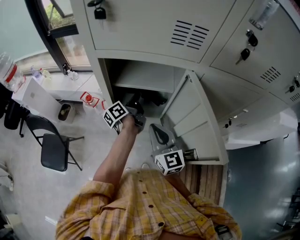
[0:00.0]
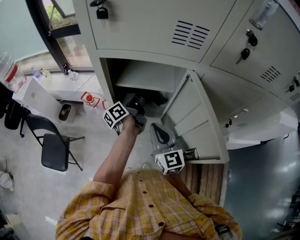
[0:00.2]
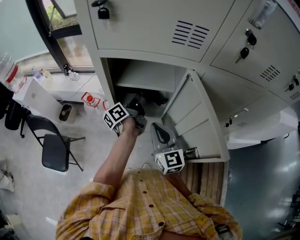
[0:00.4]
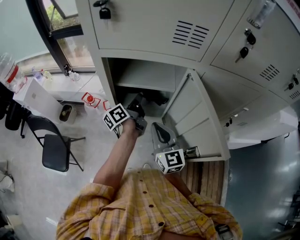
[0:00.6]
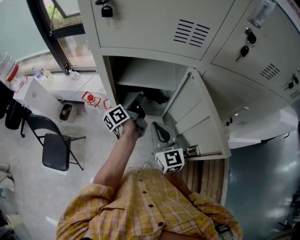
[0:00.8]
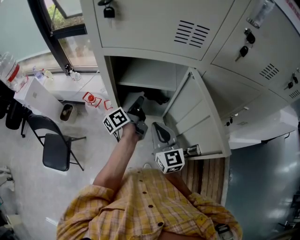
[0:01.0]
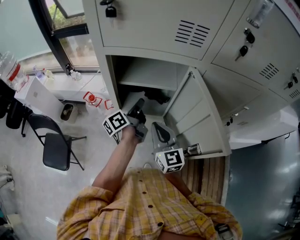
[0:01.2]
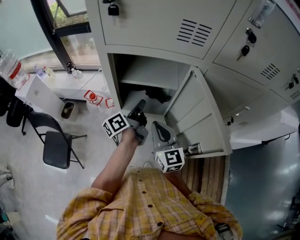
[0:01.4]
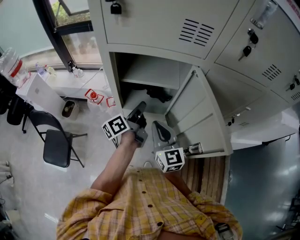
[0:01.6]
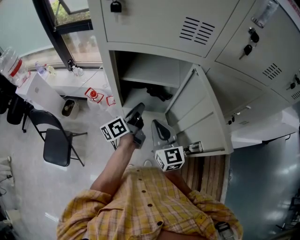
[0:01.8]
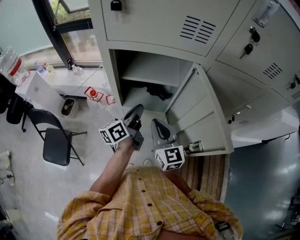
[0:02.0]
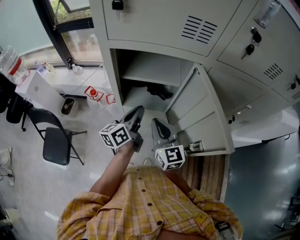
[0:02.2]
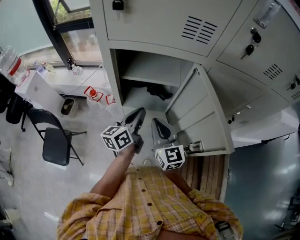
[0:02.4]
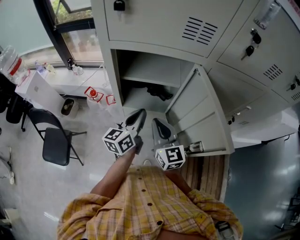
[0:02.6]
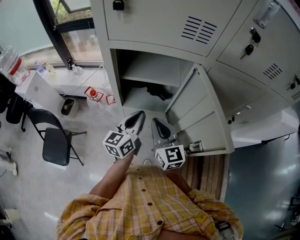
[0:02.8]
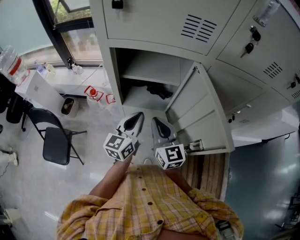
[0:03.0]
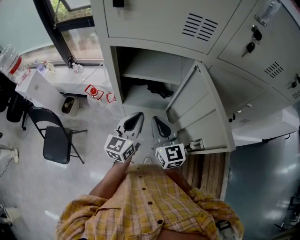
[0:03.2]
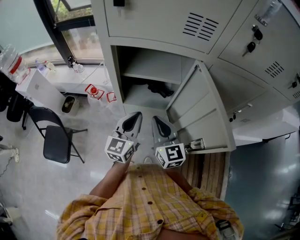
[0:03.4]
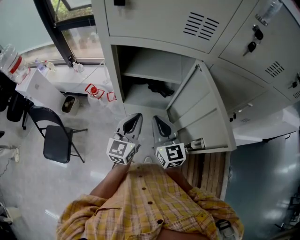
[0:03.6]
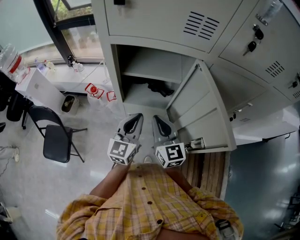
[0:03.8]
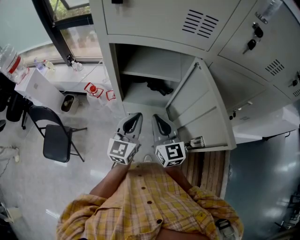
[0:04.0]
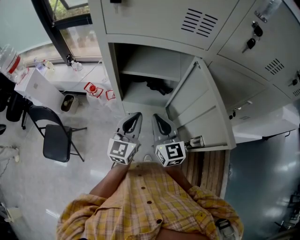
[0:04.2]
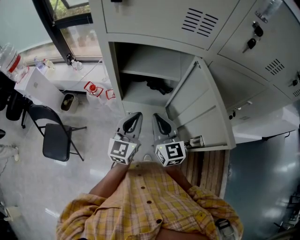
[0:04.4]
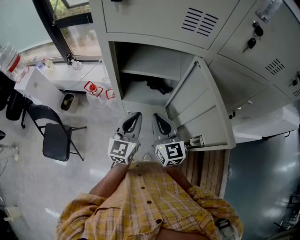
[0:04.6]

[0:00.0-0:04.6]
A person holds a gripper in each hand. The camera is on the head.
0:00.0 to 0:01.6: The left gripper goes some 10 cm backward.
0:01.6 to 0:03.0: The left gripper travels backward by roughly 5 cm, and twists some 50 degrees clockwise, seen from behind.
0:03.0 to 0:04.6: There are only small adjustments of the grippers.

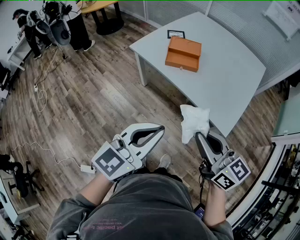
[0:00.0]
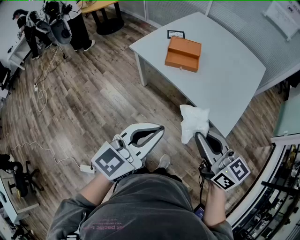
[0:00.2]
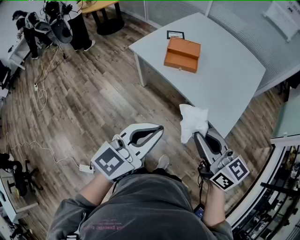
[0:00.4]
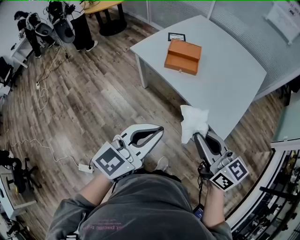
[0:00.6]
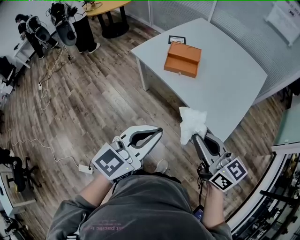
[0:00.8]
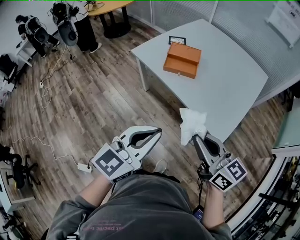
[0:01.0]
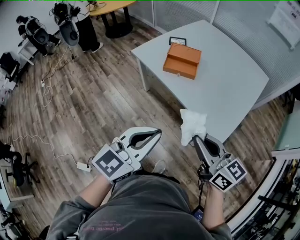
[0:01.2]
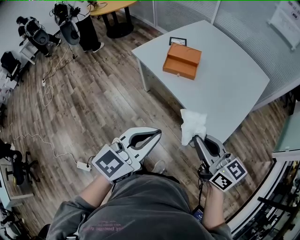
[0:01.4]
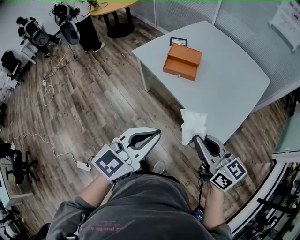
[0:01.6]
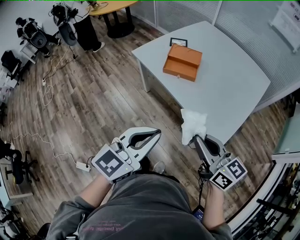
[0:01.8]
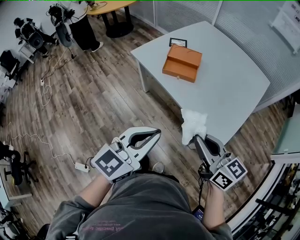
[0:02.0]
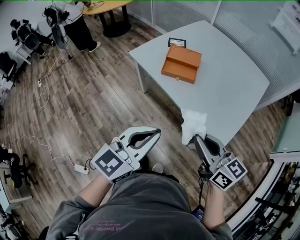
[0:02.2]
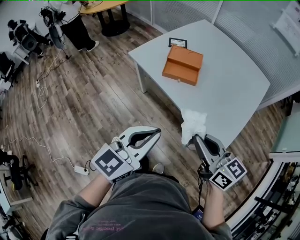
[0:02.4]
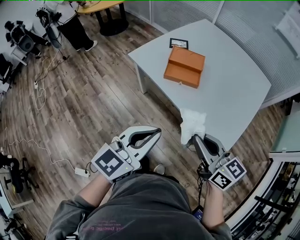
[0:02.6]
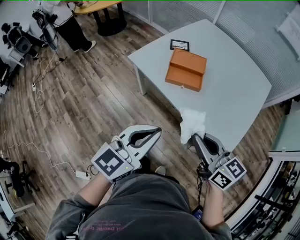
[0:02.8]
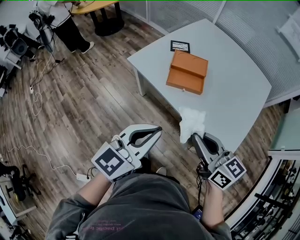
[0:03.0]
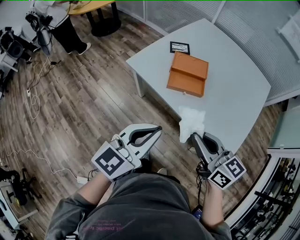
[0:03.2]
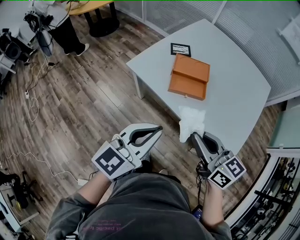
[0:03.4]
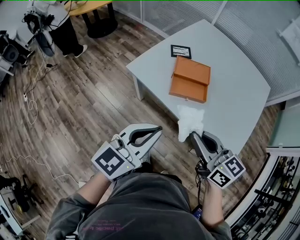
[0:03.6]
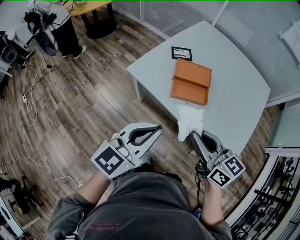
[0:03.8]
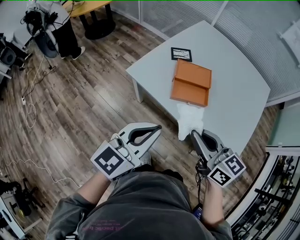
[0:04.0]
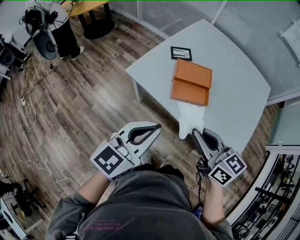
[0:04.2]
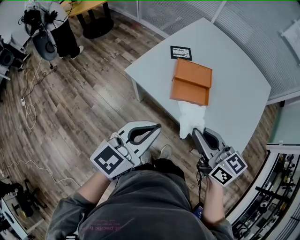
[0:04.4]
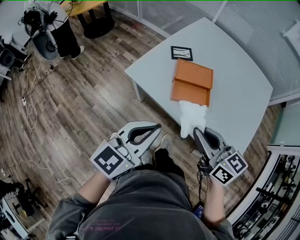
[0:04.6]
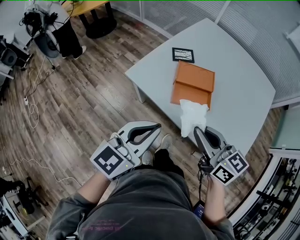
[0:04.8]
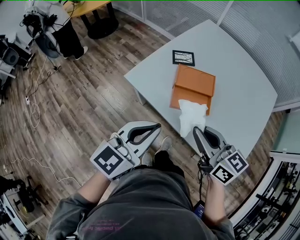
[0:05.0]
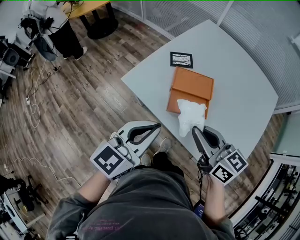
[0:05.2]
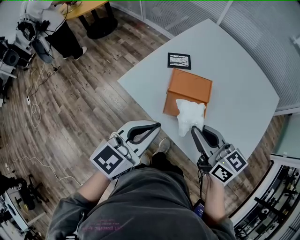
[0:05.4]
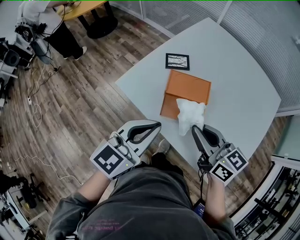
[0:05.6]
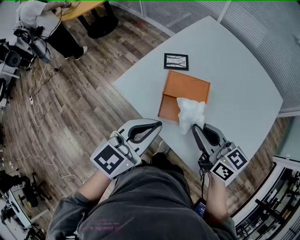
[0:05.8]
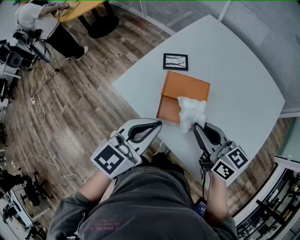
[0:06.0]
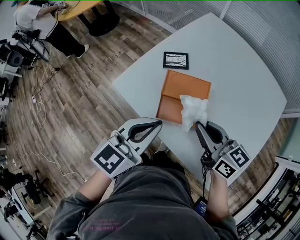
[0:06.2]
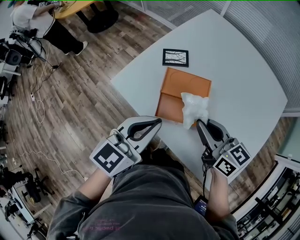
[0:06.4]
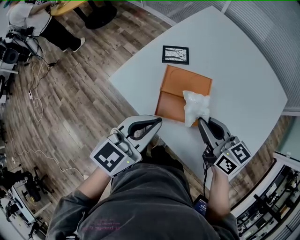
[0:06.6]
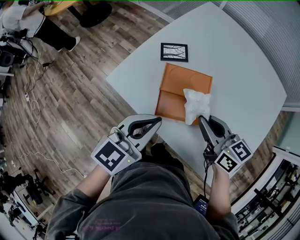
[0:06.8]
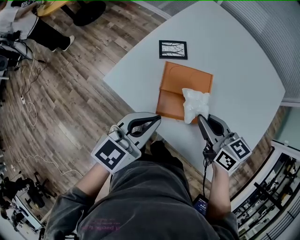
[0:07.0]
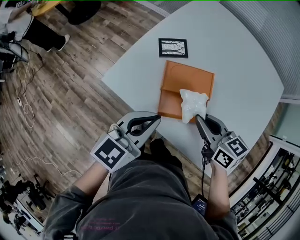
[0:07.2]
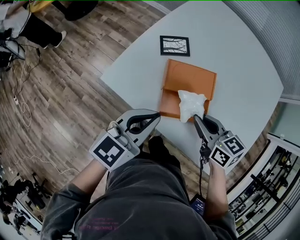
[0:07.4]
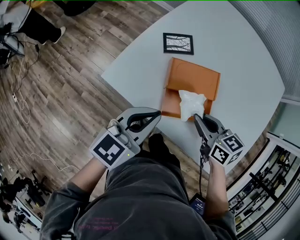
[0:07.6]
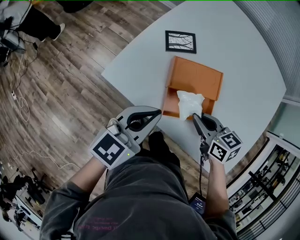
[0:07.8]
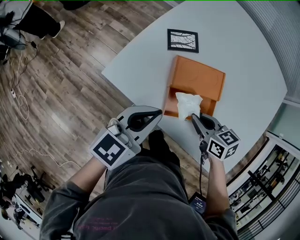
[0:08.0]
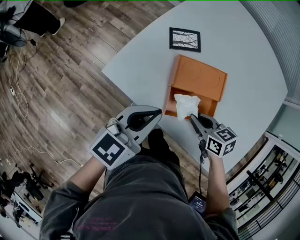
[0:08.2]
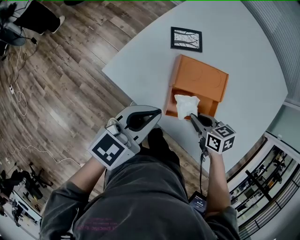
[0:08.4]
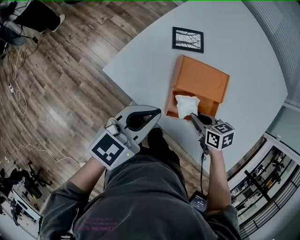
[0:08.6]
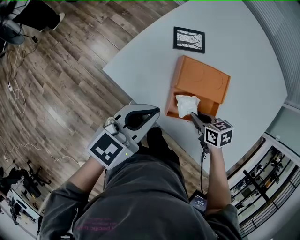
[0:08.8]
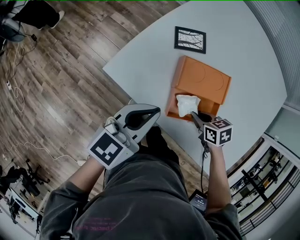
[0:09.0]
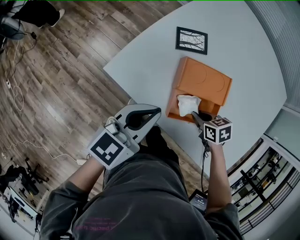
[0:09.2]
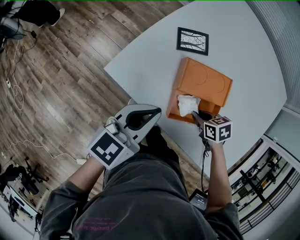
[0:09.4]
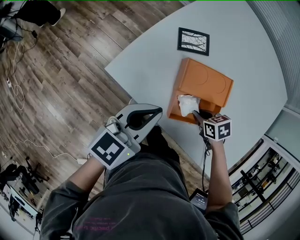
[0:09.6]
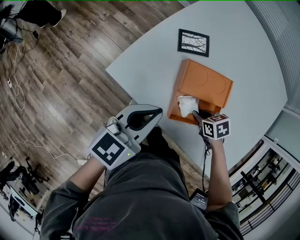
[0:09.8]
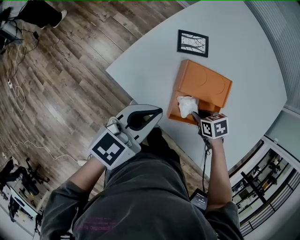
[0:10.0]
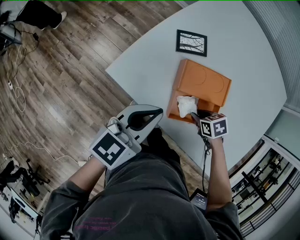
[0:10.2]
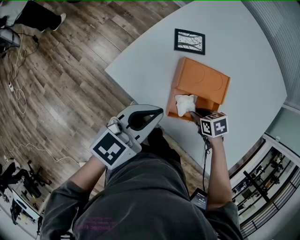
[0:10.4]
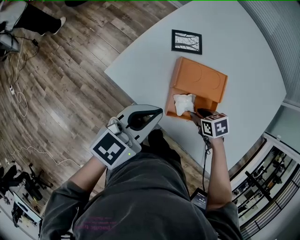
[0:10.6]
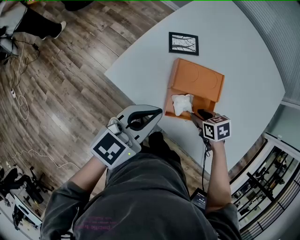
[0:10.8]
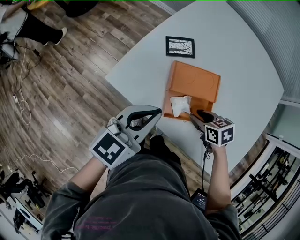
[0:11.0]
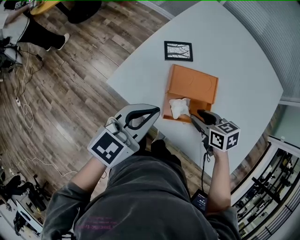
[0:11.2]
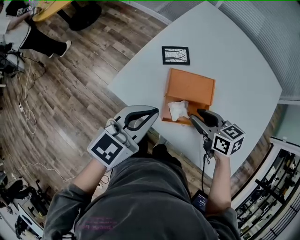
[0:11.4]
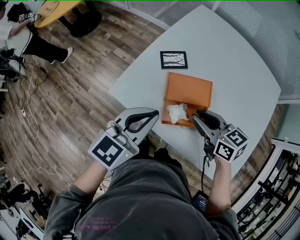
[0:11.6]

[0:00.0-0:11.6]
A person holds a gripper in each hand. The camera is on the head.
0:00.0 to 0:01.4: Both grippers travel together to the right, some 10 cm.
0:01.4 to 0:02.8: Both grippers travel together forward and to the left, some 15 cm.
0:02.8 to 0:04.4: Both grippers travel together forward and to the left, about 20 cm.
0:04.4 to 0:05.8: Both grippers travel together forward and to the right, about 20 cm.
0:05.8 to 0:07.2: The left gripper goes about 10 cm downward and forward. Meanwhile the right gripper heads downward, covering approximately 10 cm.
0:07.2 to 0:08.8: The left gripper travels to the left and downward by roughly 10 cm. Meanwhile the right gripper moves downward, approximately 20 cm, and swivels approximately 30 degrees.
0:08.8 to 0:10.2: The grippers stay close to where they were, moving slightly.
0:10.2 to 0:11.6: The left gripper heads upward, covering roughly 10 cm, while the right gripper heads upward, covering some 25 cm, and points its fingers some 40 degrees further upward.

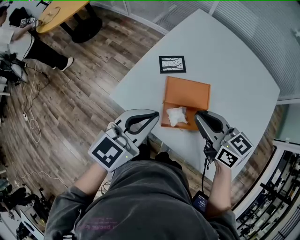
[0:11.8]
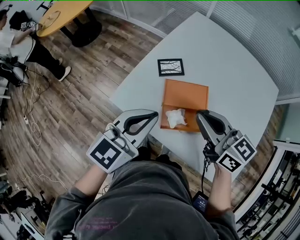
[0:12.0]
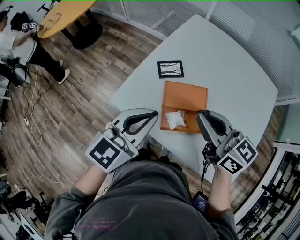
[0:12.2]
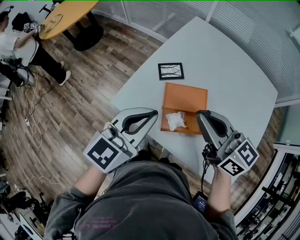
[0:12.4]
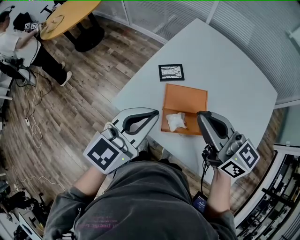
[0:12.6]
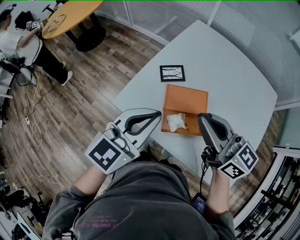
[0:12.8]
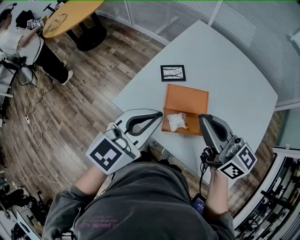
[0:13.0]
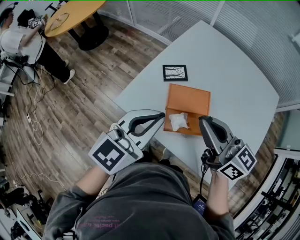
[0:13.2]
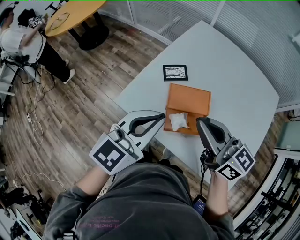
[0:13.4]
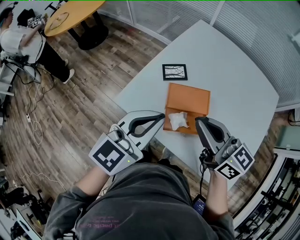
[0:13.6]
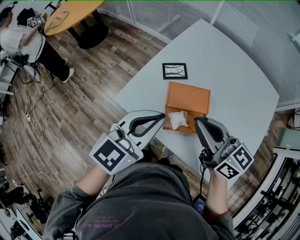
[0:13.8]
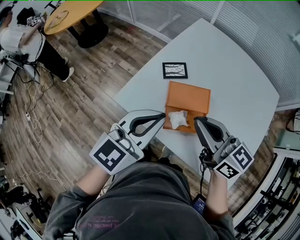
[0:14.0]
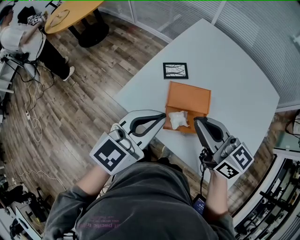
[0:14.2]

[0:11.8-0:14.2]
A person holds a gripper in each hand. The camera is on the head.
0:11.8 to 0:13.0: The left gripper travels upward by roughly 5 cm. The right gripper travels upward by approximately 10 cm.
0:13.0 to 0:14.2: The grippers stay close to where they were, moving slightly.

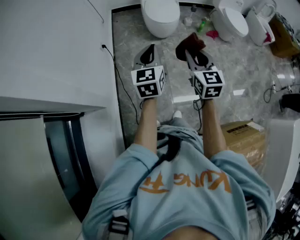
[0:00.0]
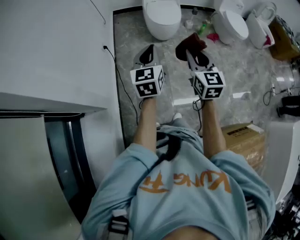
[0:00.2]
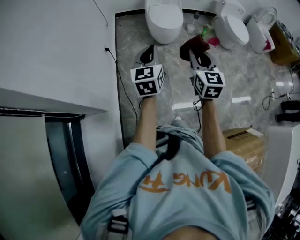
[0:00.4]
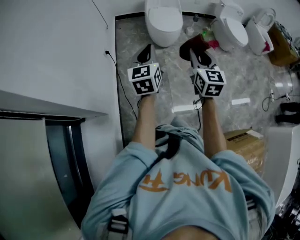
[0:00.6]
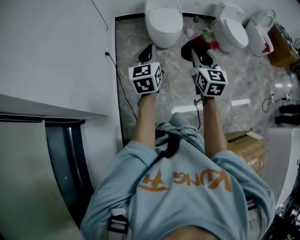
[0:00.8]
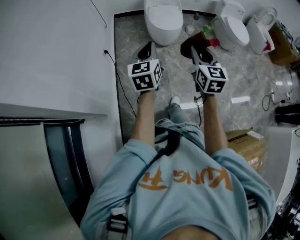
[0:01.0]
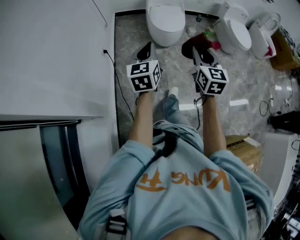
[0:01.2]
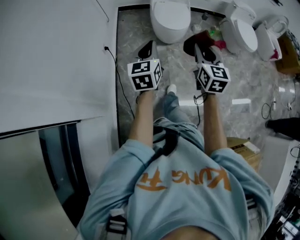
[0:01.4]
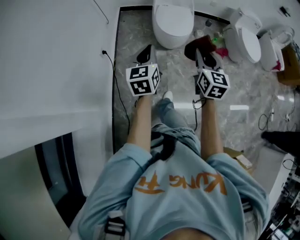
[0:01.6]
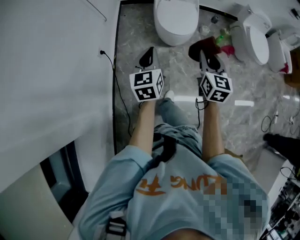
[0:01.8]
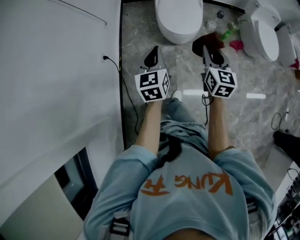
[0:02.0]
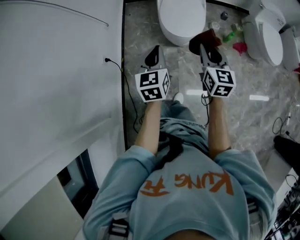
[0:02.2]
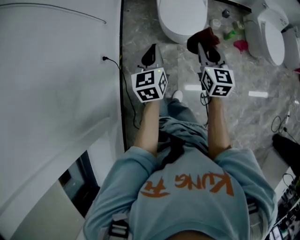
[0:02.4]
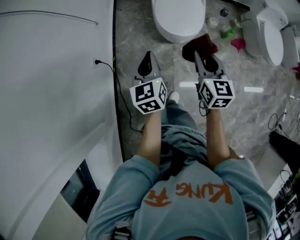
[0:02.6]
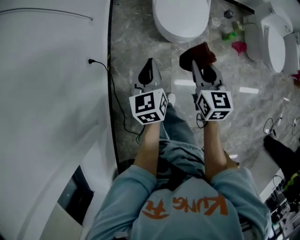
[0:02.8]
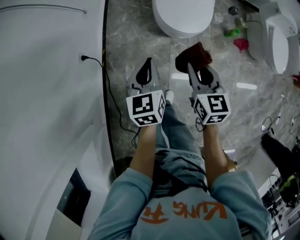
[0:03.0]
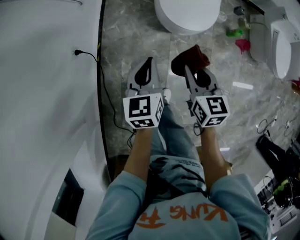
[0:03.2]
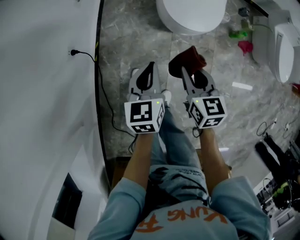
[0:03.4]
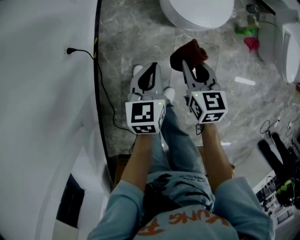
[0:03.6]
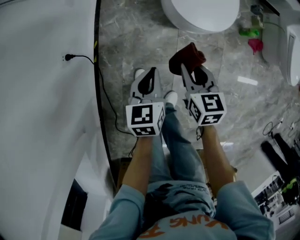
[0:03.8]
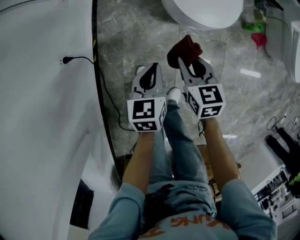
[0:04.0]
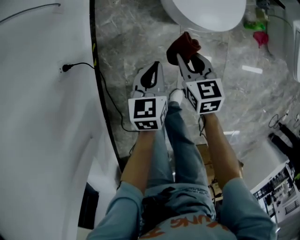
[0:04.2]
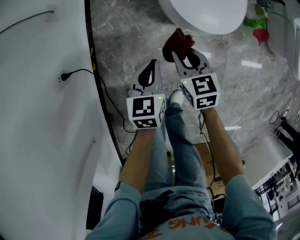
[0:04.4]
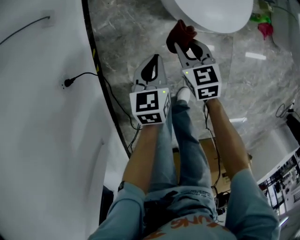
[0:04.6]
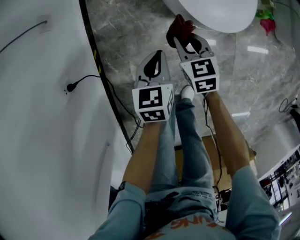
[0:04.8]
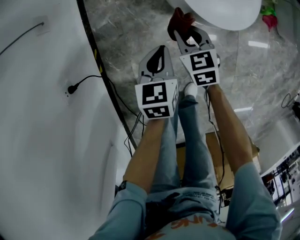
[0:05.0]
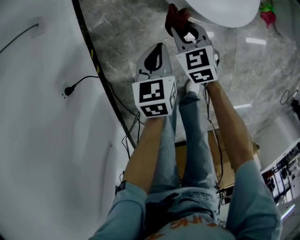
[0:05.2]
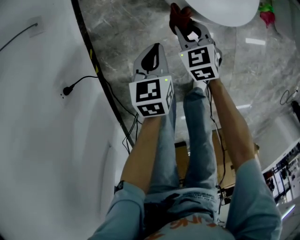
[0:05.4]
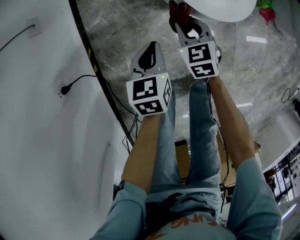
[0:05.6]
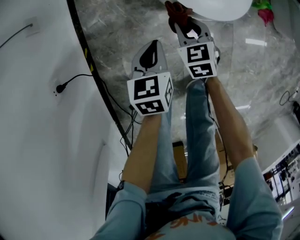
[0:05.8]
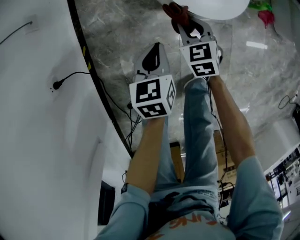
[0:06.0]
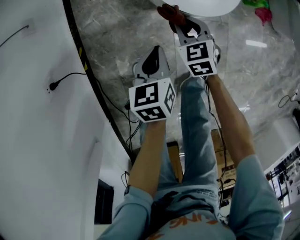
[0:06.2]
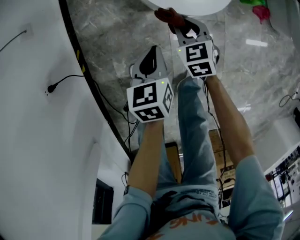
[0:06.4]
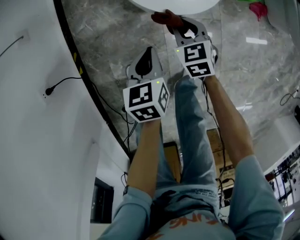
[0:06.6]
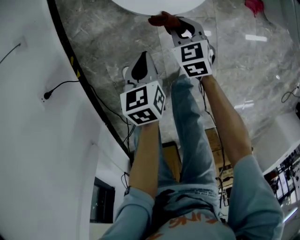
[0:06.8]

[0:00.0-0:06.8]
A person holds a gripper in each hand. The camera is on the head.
0:00.0 to 0:01.4: Both grippers travel together forward, about 15 cm.
0:01.4 to 0:02.8: The grippers both shift forward and downward by some 30 cm.
0:02.8 to 0:04.0: Both grippers move downward, roughly 30 cm.
0:04.0 to 0:05.4: The two grippers go approximately 20 cm downward and forward. The right gripper turns by about 20 degrees.
0:05.4 to 0:06.8: The two grippers go some 15 cm to the right.
